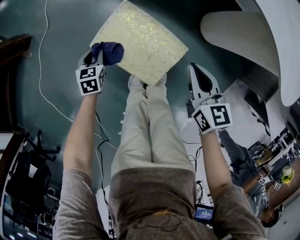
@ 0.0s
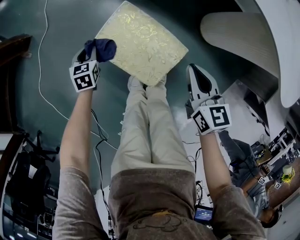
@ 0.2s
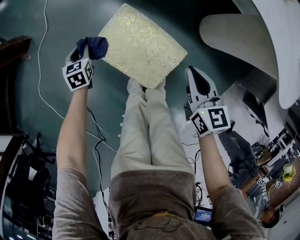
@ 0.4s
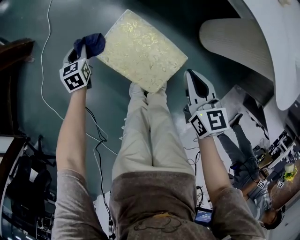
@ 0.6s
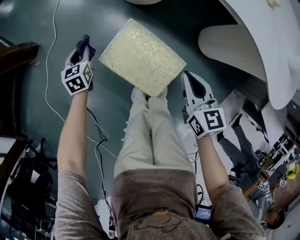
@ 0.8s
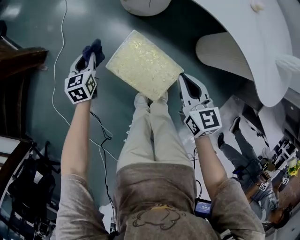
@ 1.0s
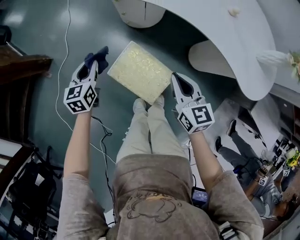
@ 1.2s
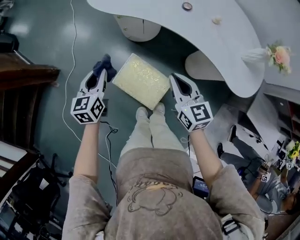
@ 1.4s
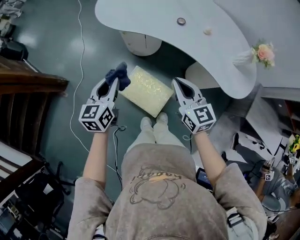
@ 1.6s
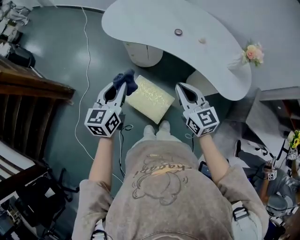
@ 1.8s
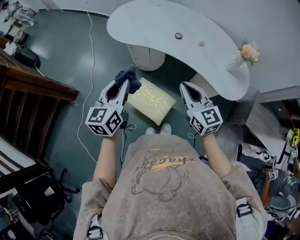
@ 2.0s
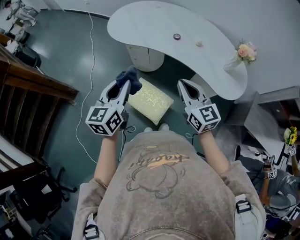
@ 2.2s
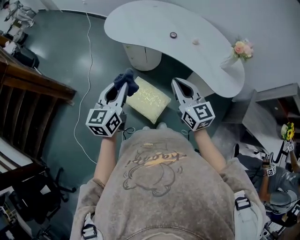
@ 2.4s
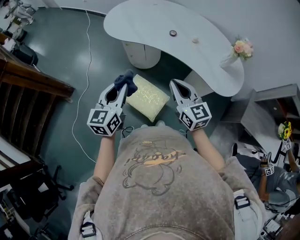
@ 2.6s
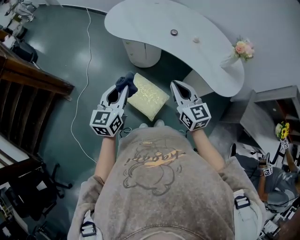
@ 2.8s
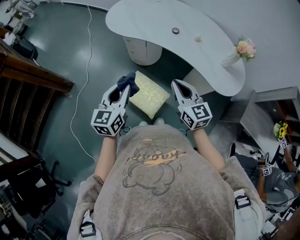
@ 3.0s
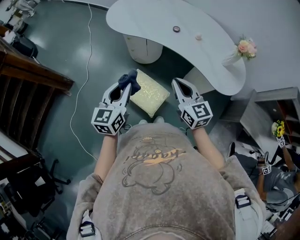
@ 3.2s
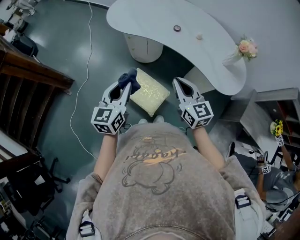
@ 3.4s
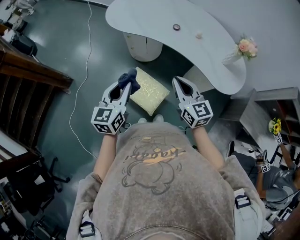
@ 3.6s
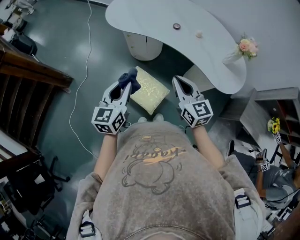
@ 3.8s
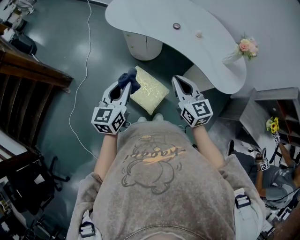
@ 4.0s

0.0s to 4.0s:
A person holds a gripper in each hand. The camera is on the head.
0.0s to 1.4s: The left gripper shifts approximately 40 cm upward, and swivels about 30 degrees; the right gripper is displaced upward by some 25 cm.
1.4s to 2.6s: The grippers both shift upward and backward by approximately 20 cm.
2.6s to 4.0s: The grippers move only a little.

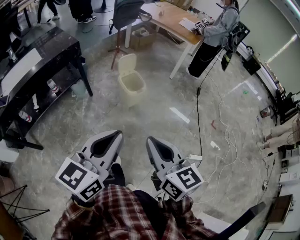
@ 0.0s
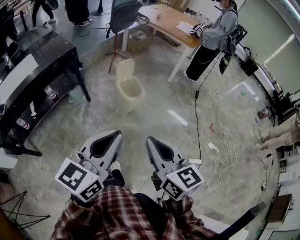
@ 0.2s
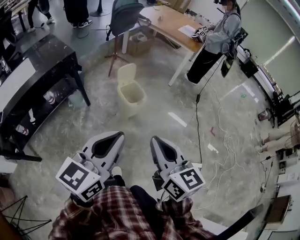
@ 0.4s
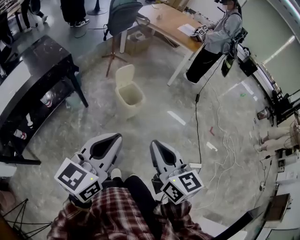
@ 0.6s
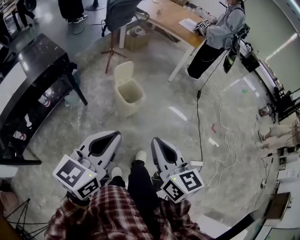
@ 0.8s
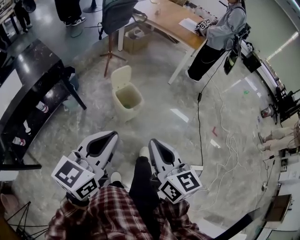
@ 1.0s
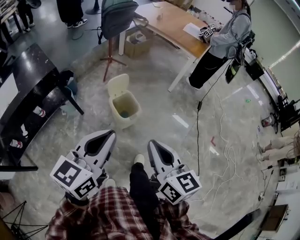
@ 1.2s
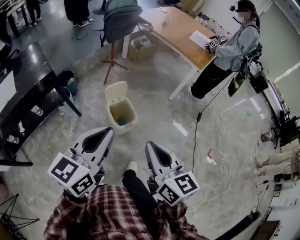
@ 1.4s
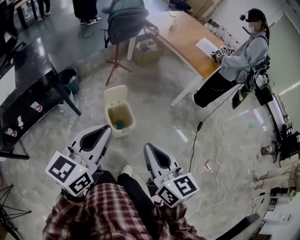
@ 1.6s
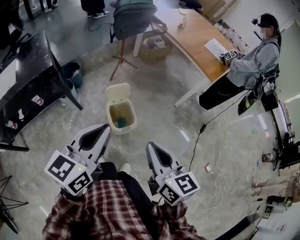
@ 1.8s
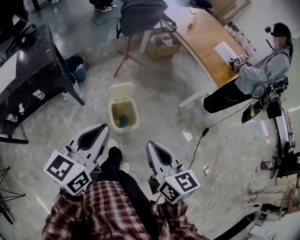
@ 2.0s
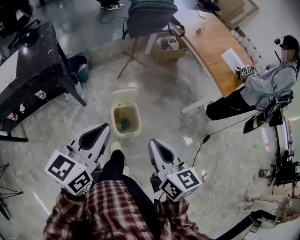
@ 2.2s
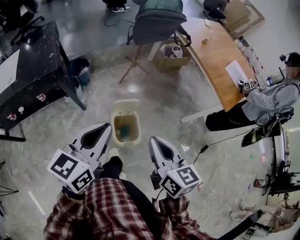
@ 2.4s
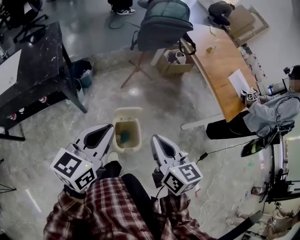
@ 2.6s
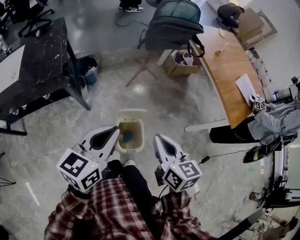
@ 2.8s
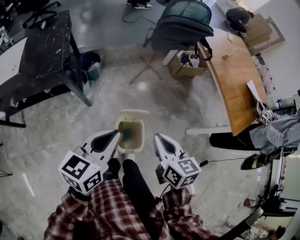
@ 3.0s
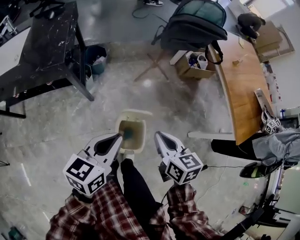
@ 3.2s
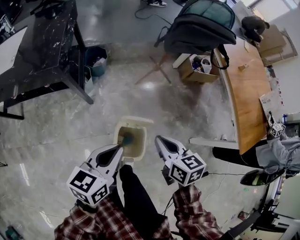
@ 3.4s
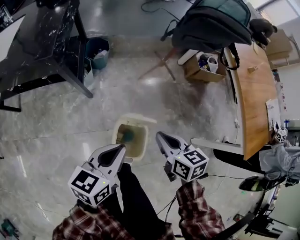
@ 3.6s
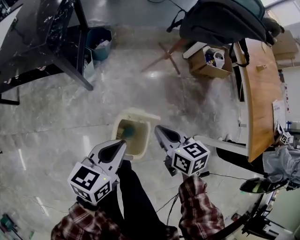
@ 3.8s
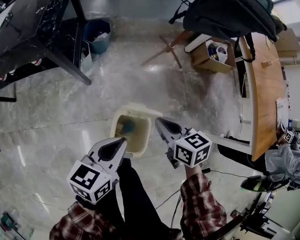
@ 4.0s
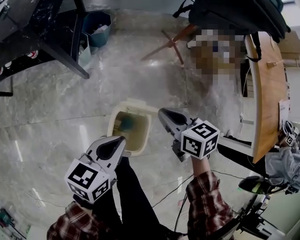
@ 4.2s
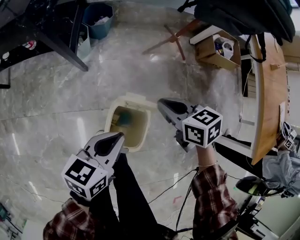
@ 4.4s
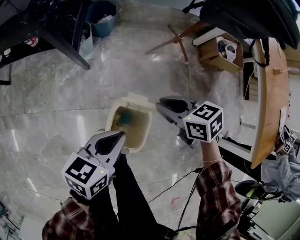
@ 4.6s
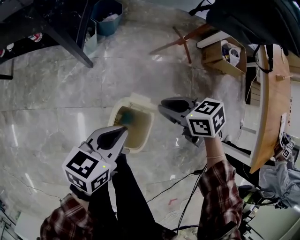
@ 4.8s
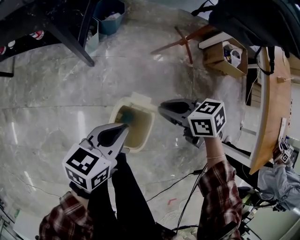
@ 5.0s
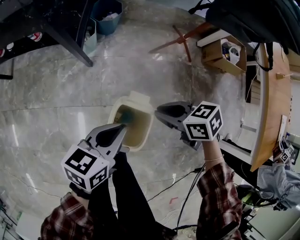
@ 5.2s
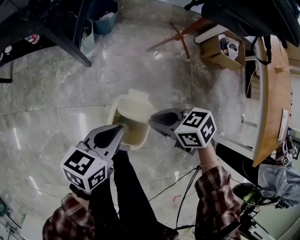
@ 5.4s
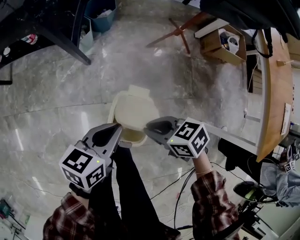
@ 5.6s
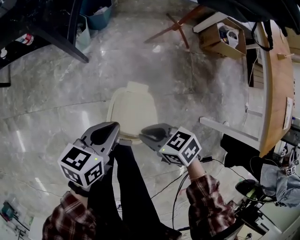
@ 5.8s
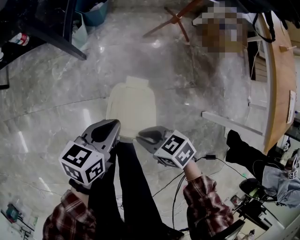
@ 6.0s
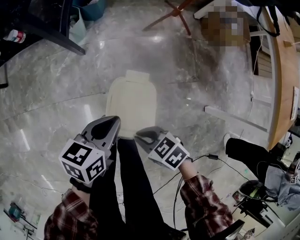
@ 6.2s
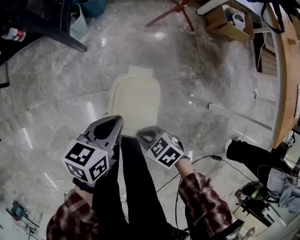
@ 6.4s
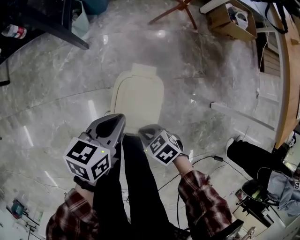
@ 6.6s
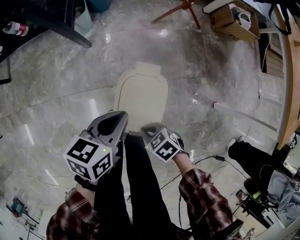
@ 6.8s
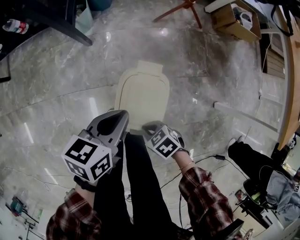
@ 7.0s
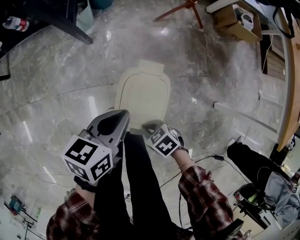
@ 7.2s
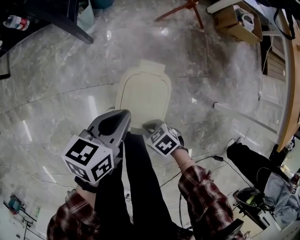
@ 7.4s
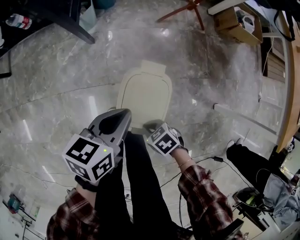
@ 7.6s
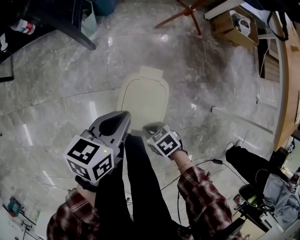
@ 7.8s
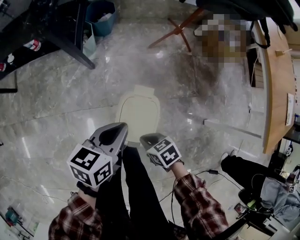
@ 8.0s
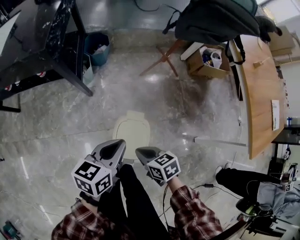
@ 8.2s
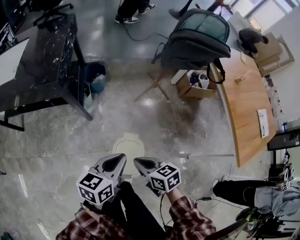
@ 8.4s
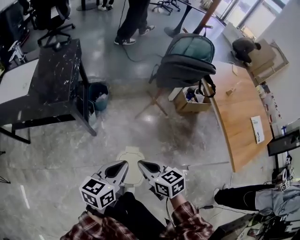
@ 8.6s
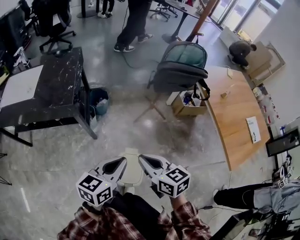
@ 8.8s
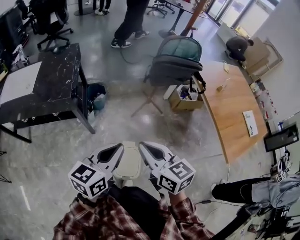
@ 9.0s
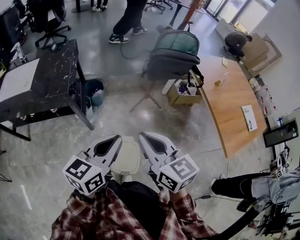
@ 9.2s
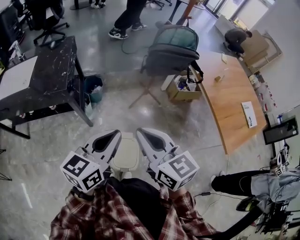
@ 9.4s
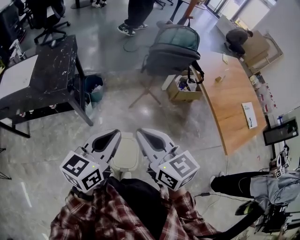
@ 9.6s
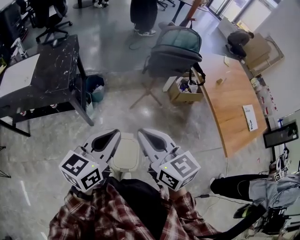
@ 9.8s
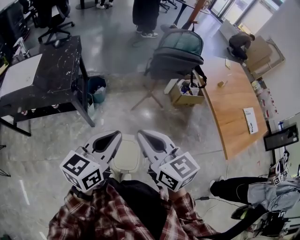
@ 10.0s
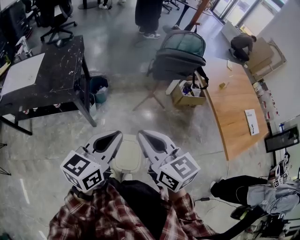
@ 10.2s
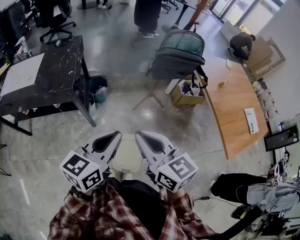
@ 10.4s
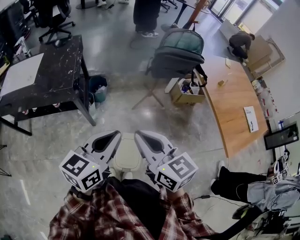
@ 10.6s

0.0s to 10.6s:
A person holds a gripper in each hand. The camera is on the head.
0.0s to 1.6s: Both grippers are carried forward, approximately 40 cm.
1.6s to 3.0s: The left gripper goes about 30 cm forward and downward, and swivels some 20 degrees, while the right gripper goes approximately 35 cm forward, and turns by roughly 30 degrees.
3.0s to 4.6s: The two grippers go roughly 30 cm downward. The right gripper changes its angle by about 50 degrees.
4.6s to 6.0s: The left gripper heads downward, covering roughly 5 cm. The right gripper changes place by roughly 20 cm.
6.0s to 7.6s: The right gripper is displaced downward by approximately 15 cm.
7.6s to 9.0s: Both grippers move upward, some 60 cm. The left gripper swivels some 30 degrees, while the right gripper tilts its fingers about 50 degrees upward.
9.0s to 10.6s: The right gripper changes place by some 5 cm.

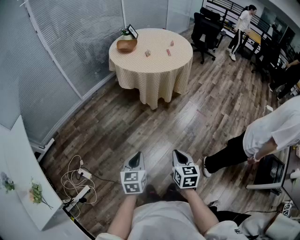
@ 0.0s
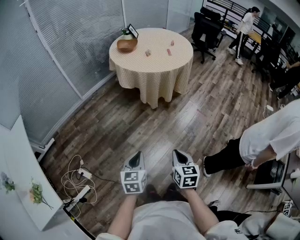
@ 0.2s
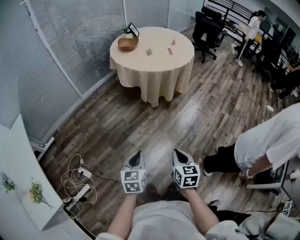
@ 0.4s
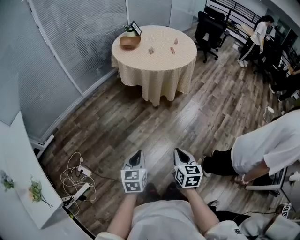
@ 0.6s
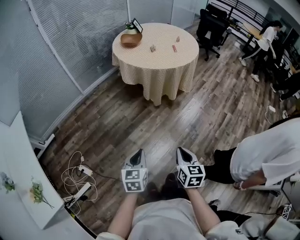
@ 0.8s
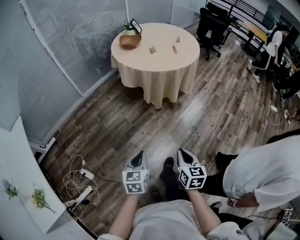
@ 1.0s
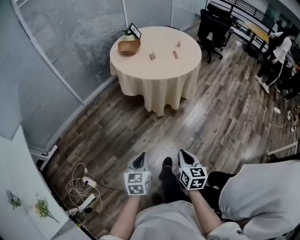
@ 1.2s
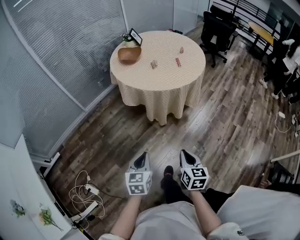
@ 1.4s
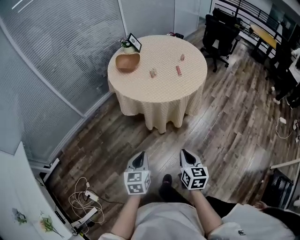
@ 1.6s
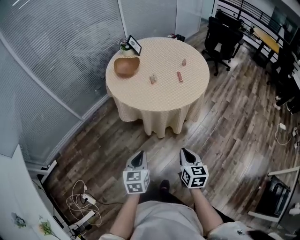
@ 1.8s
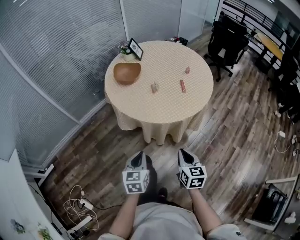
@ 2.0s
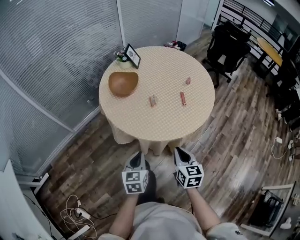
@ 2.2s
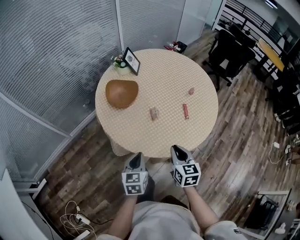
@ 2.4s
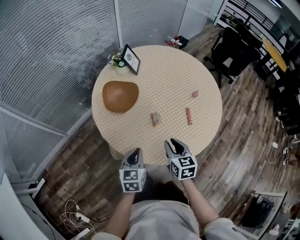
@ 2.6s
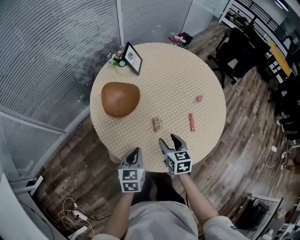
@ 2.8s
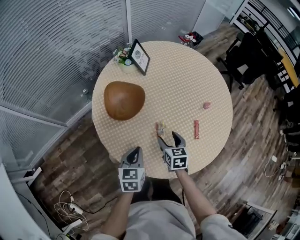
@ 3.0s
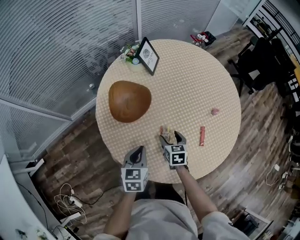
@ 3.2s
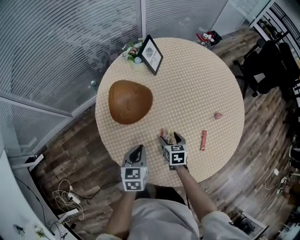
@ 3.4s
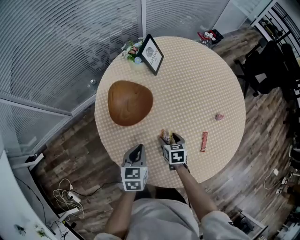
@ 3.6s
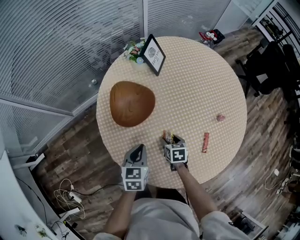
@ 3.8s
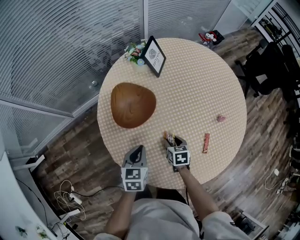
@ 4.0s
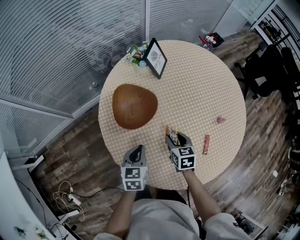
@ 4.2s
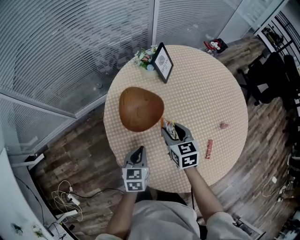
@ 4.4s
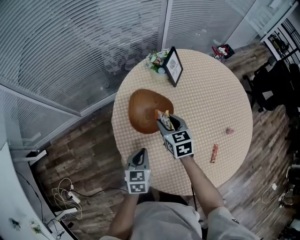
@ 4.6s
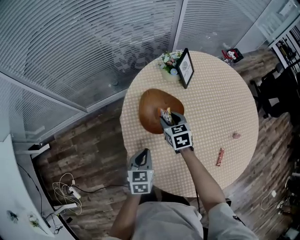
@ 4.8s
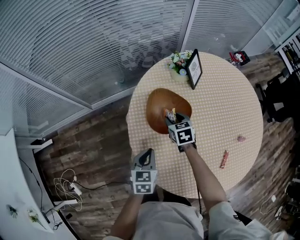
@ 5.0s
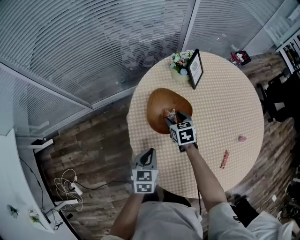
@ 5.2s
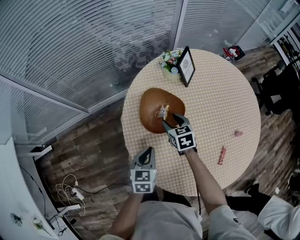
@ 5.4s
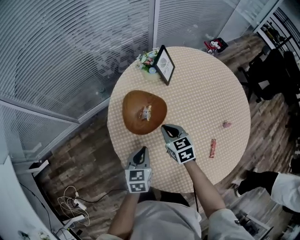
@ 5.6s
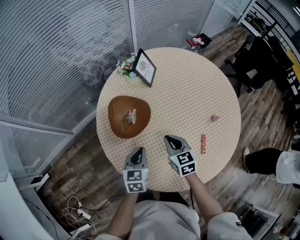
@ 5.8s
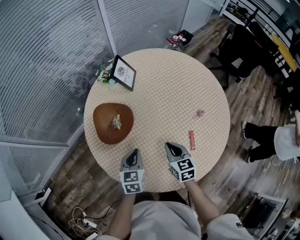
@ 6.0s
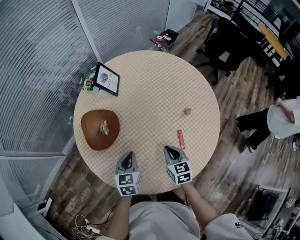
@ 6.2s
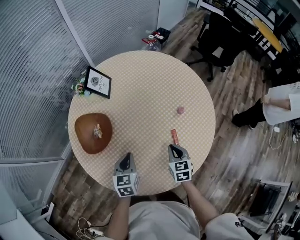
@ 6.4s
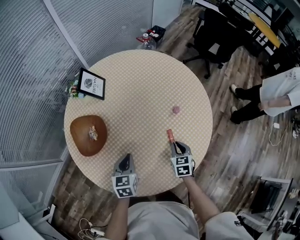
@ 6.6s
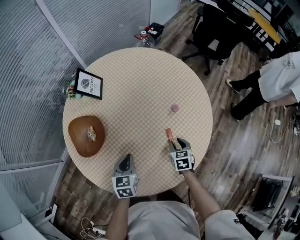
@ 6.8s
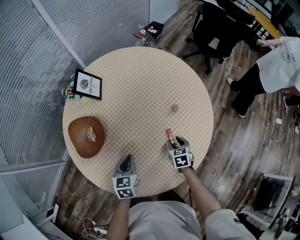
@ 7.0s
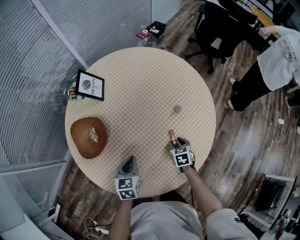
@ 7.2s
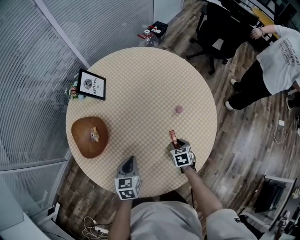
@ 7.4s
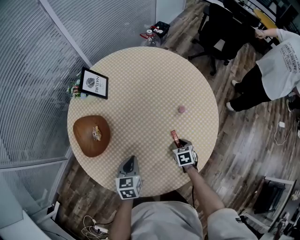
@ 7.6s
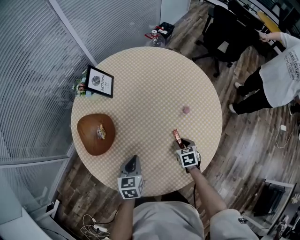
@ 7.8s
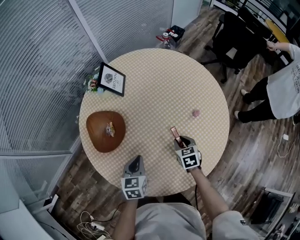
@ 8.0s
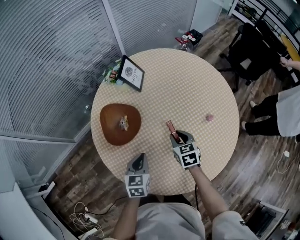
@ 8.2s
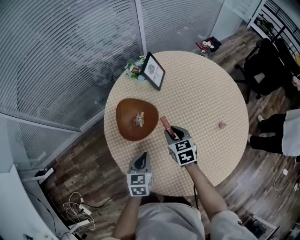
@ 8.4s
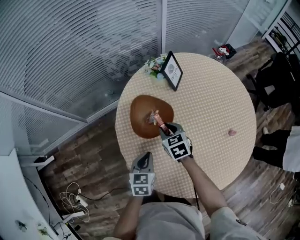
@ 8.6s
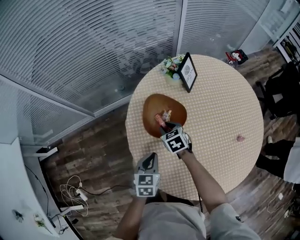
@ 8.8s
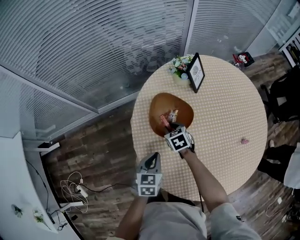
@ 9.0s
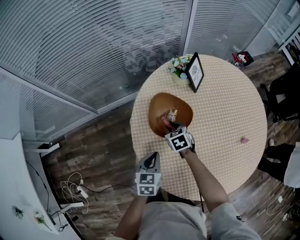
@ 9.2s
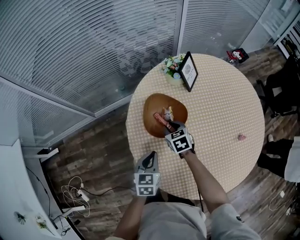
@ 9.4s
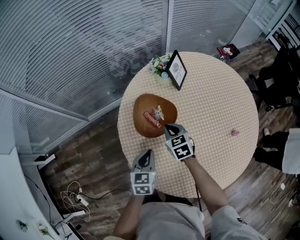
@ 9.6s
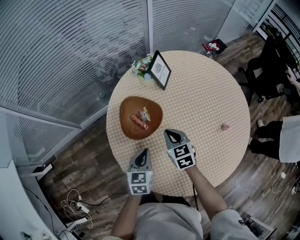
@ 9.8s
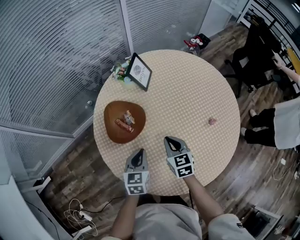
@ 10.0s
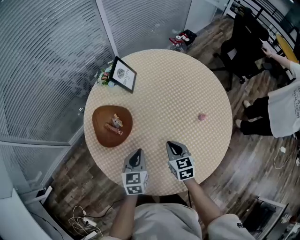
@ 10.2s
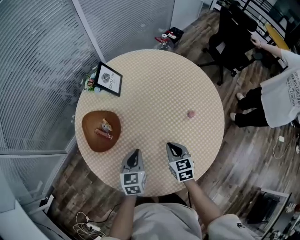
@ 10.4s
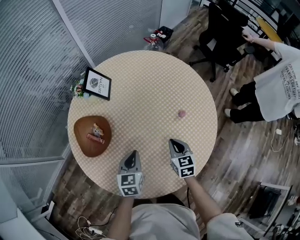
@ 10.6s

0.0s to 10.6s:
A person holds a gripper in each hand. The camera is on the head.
0.0s to 1.6s: Both grippers travel together forward, about 35 cm.
1.6s to 3.0s: The pair of grippers is taken forward, some 60 cm. The right gripper opens.
3.0s to 4.6s: The left gripper moves forward and to the left, approximately 10 cm. The right gripper is displaced forward and to the left by approximately 20 cm, and swivels approximately 20 degrees.
4.6s to 6.0s: The right gripper heads backward and to the right, covering roughly 20 cm, and closes; the left gripper is displaced to the right by about 10 cm.
6.0s to 7.6s: The right gripper travels to the right and downward by approximately 25 cm, turns by roughly 30 degrees, and opens up. Meanwhile the left gripper is displaced to the right by roughly 10 cm.
7.6s to 9.0s: The right gripper moves approximately 50 cm, and changes its angle by about 50 degrees; the left gripper ends up approximately 20 cm from where it was, and turns by about 20 degrees.
9.0s to 10.6s: The right gripper changes place by roughly 40 cm, rotates approximately 50 degrees, and closes its fingers. Meanwhile the left gripper shifts by about 25 cm, and rotates roughly 20 degrees.
